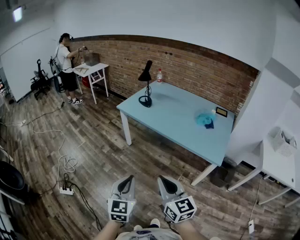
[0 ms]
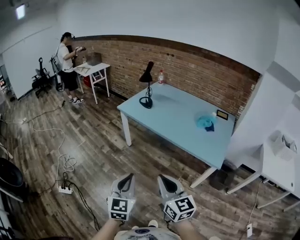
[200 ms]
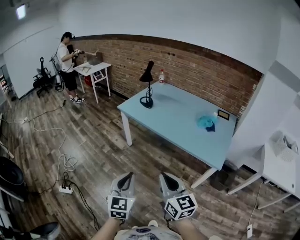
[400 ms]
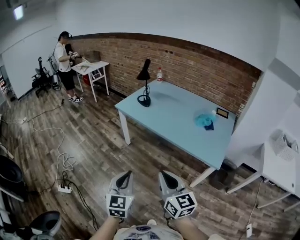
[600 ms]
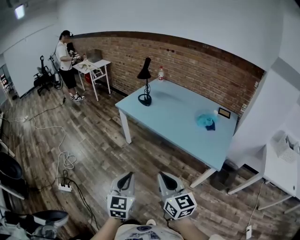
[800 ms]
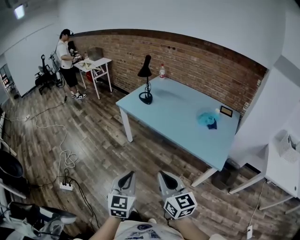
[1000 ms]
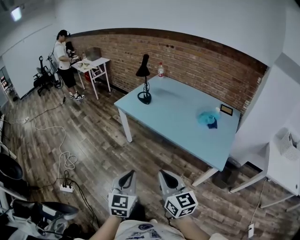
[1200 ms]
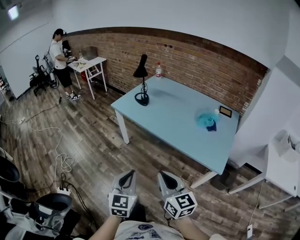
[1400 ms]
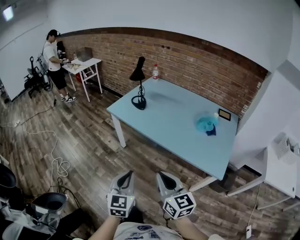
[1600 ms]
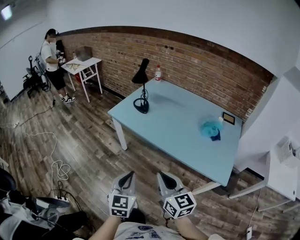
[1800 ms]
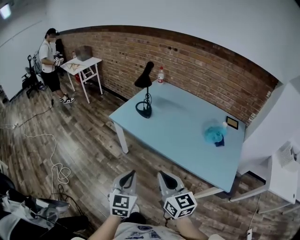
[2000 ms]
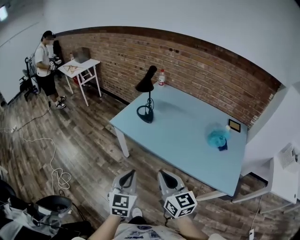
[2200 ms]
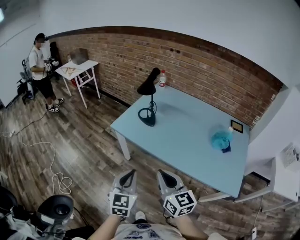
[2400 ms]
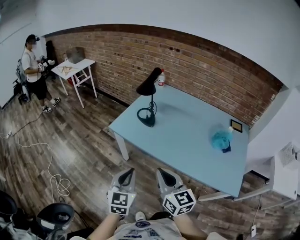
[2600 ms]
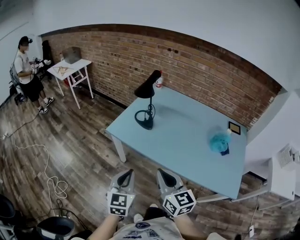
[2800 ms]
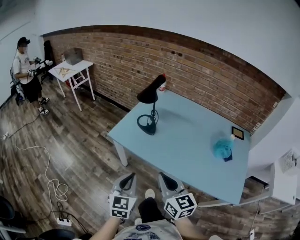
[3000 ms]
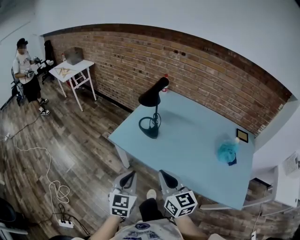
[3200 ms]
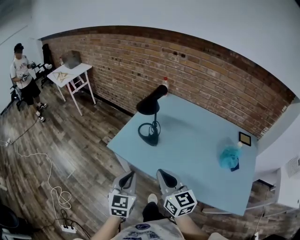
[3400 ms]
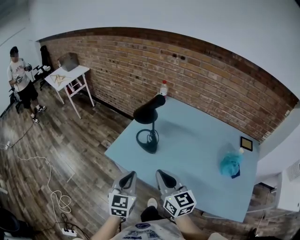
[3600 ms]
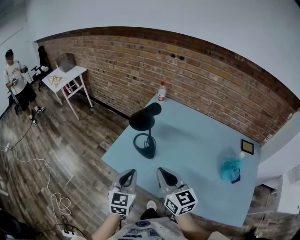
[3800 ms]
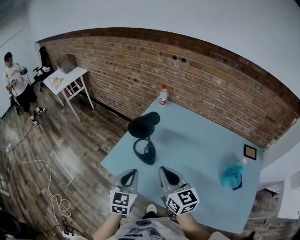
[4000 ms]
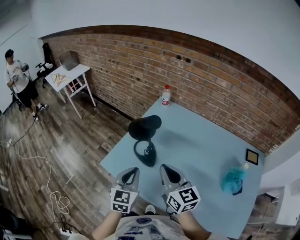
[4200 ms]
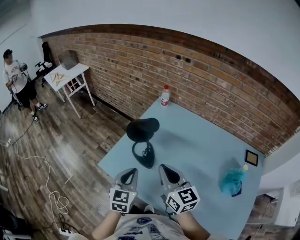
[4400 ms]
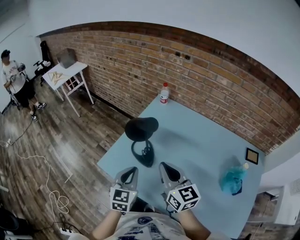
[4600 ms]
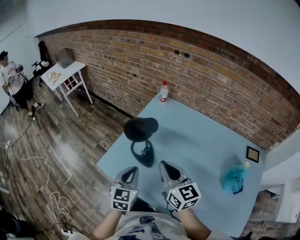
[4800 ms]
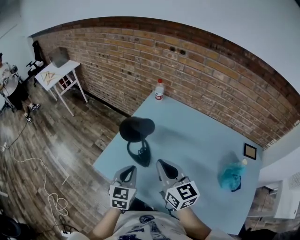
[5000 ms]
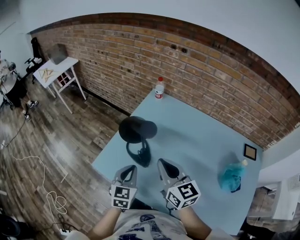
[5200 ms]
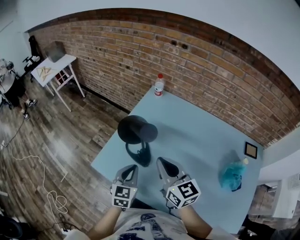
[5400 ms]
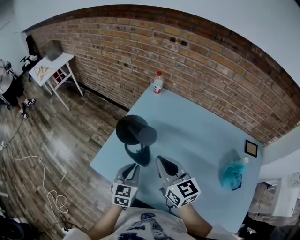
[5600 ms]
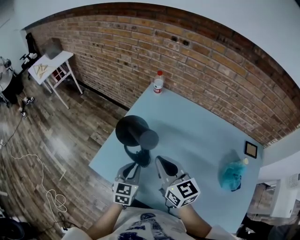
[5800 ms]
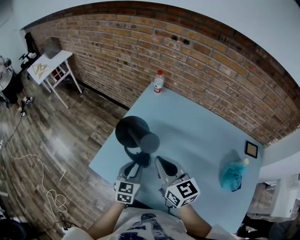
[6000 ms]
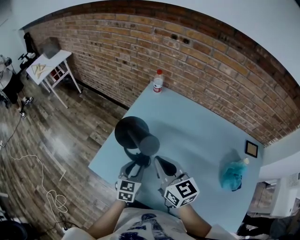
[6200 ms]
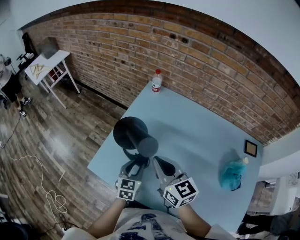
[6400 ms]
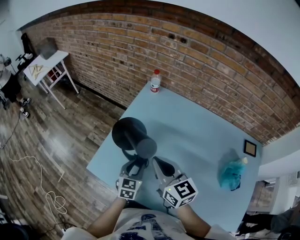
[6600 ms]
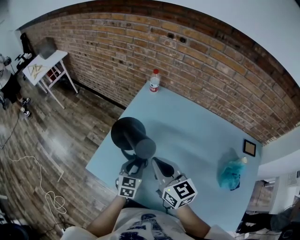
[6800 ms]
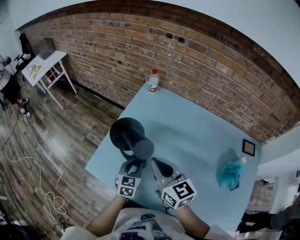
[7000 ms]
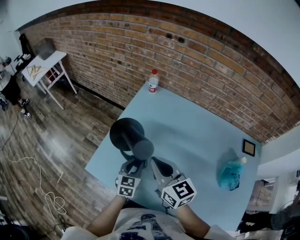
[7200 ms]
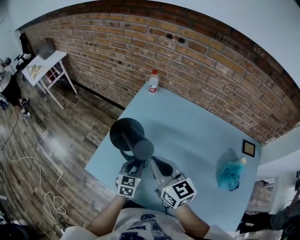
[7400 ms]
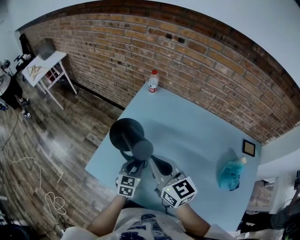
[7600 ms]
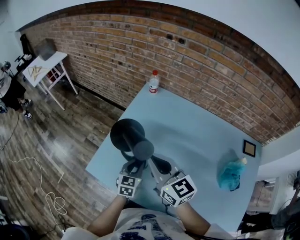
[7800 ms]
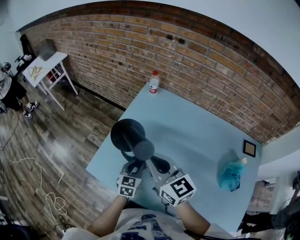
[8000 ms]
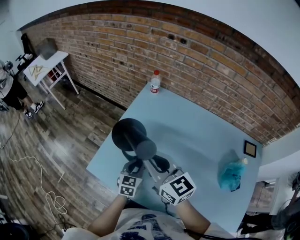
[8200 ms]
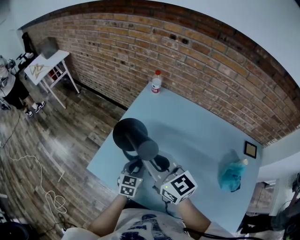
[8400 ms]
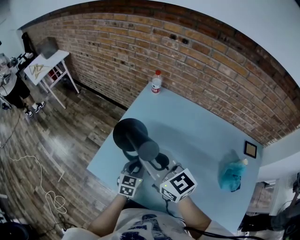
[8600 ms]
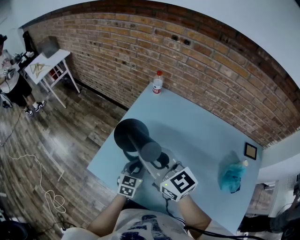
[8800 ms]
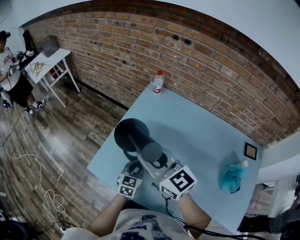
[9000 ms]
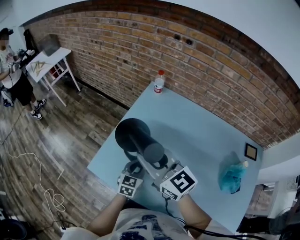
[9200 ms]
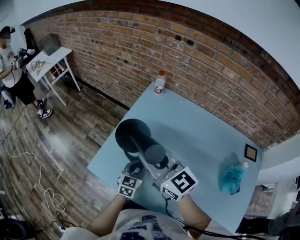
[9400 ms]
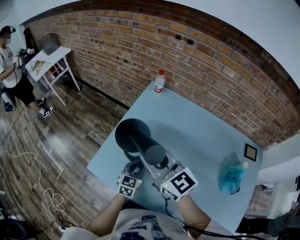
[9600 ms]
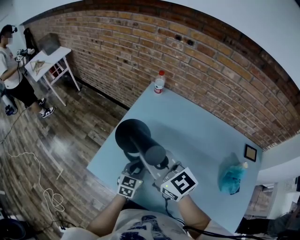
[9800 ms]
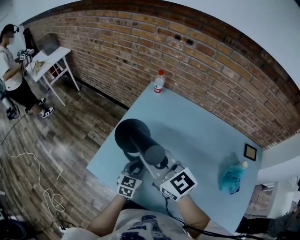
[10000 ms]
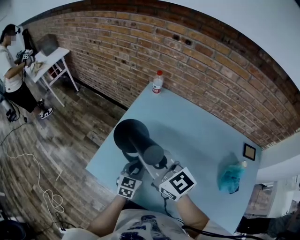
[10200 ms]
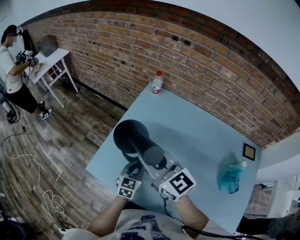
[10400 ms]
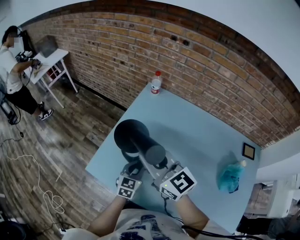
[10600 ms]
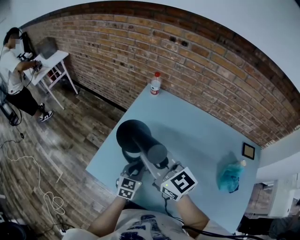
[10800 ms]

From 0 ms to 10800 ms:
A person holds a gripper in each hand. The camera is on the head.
From 0 ms to 1600 ms: The grippers both shift forward by some 20 cm.
From 1600 ms to 3000 ms: The grippers both shift forward by roughly 30 cm.
From 3000 ms to 4600 ms: The grippers both shift forward by approximately 35 cm.
From 4600 ms to 6200 ms: The right gripper shifts roughly 10 cm forward. Meanwhile the left gripper travels downward and forward by roughly 15 cm, and opens up.
From 6200 ms to 7800 ms: The grippers make only small movements.
From 7800 ms to 9200 ms: The right gripper shifts by about 5 cm, and opens its fingers.
From 9200 ms to 10800 ms: There are only small adjustments of the grippers.

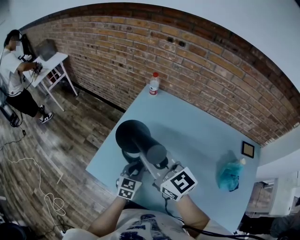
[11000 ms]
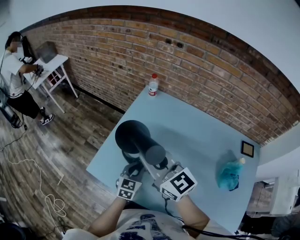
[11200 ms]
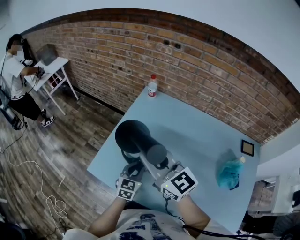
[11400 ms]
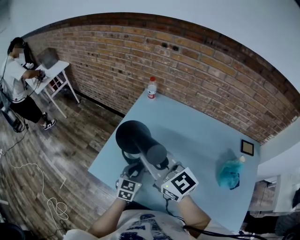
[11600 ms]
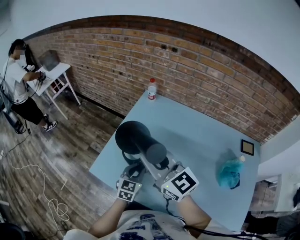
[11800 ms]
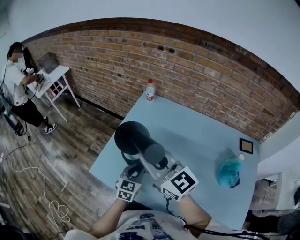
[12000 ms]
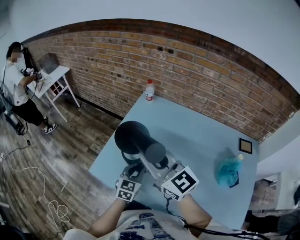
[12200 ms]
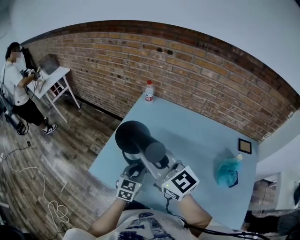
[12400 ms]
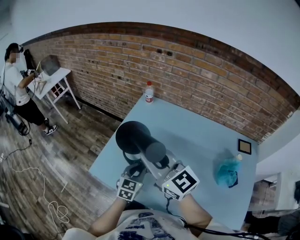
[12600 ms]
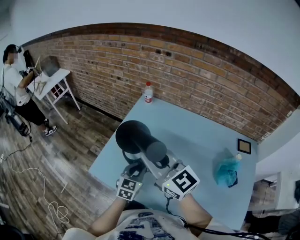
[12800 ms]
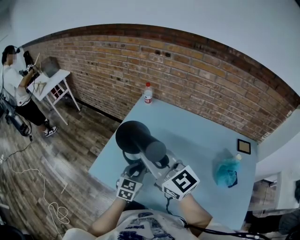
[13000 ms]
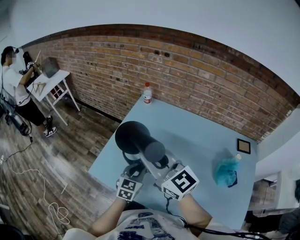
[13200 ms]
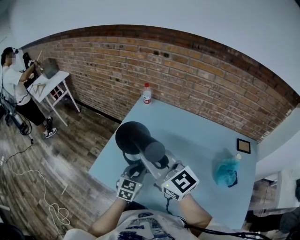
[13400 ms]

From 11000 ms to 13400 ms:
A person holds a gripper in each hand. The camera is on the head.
From 11000 ms to 12200 ms: The left gripper ends up about 5 cm from where it was; the right gripper heads backward, covering roughly 5 cm.
From 12200 ms to 13400 ms: The grippers move only a little.

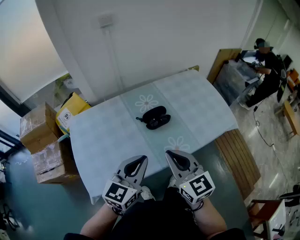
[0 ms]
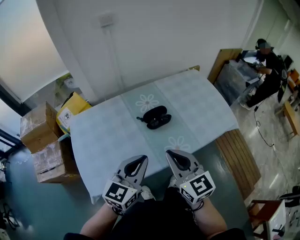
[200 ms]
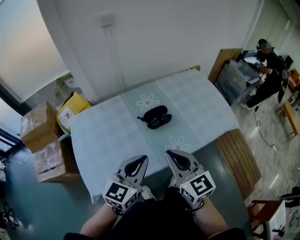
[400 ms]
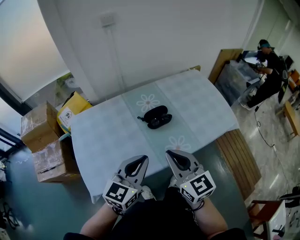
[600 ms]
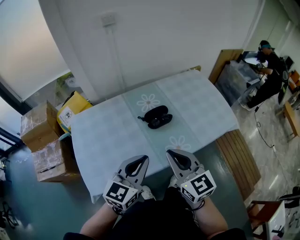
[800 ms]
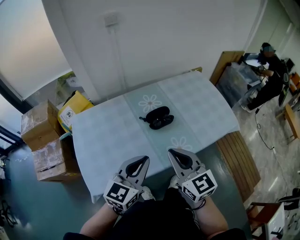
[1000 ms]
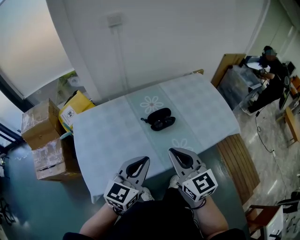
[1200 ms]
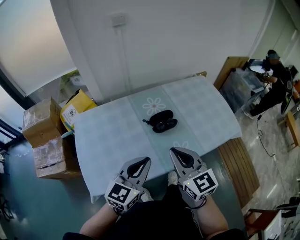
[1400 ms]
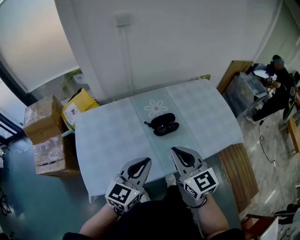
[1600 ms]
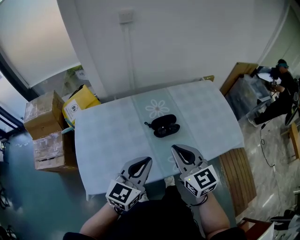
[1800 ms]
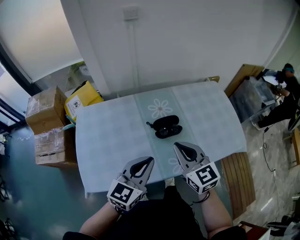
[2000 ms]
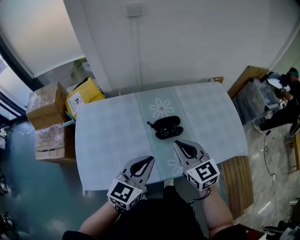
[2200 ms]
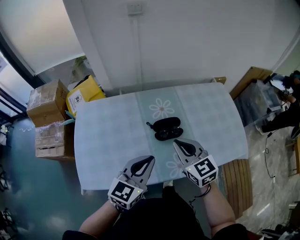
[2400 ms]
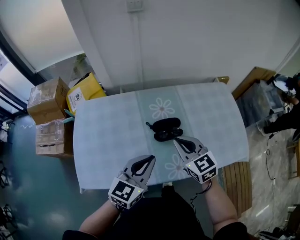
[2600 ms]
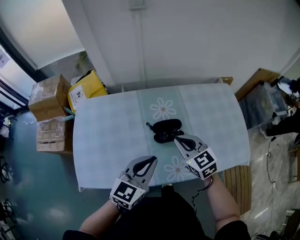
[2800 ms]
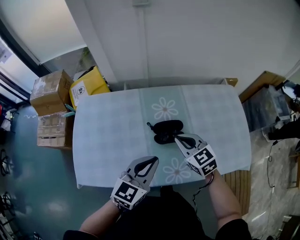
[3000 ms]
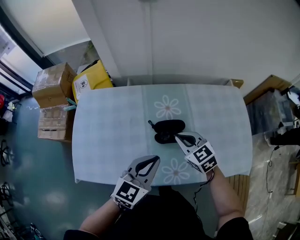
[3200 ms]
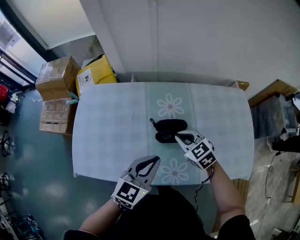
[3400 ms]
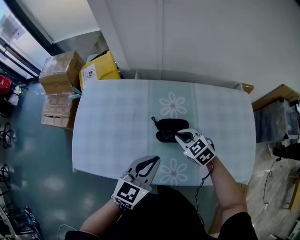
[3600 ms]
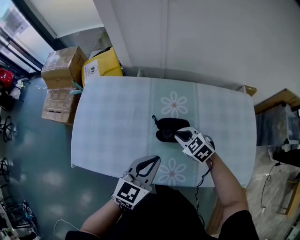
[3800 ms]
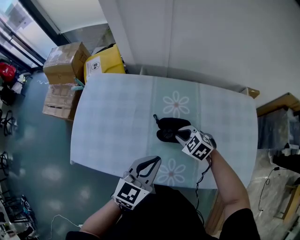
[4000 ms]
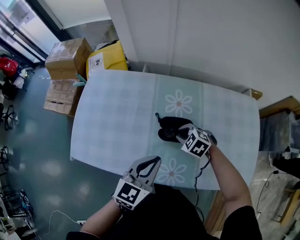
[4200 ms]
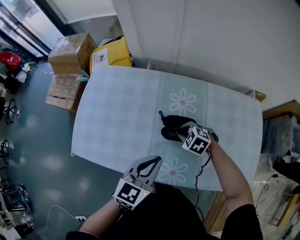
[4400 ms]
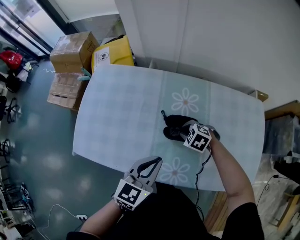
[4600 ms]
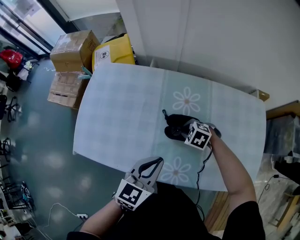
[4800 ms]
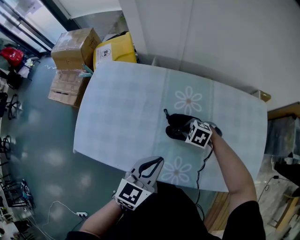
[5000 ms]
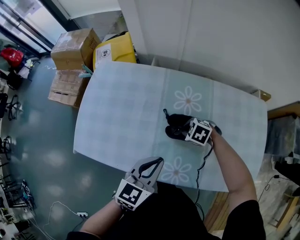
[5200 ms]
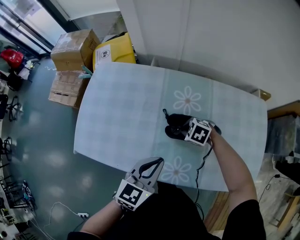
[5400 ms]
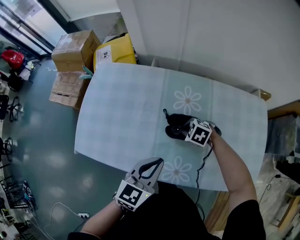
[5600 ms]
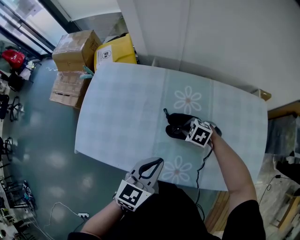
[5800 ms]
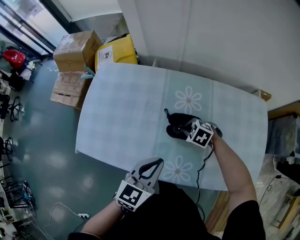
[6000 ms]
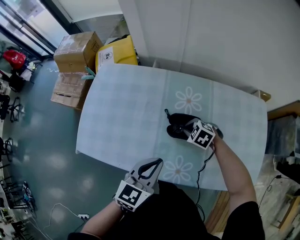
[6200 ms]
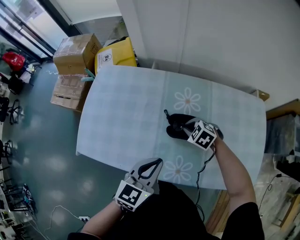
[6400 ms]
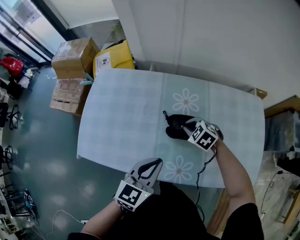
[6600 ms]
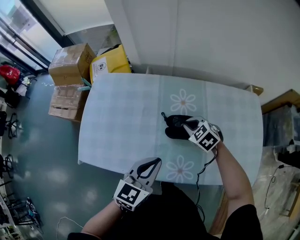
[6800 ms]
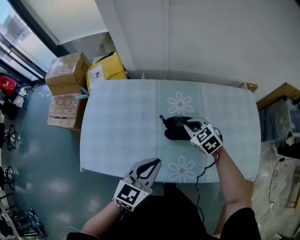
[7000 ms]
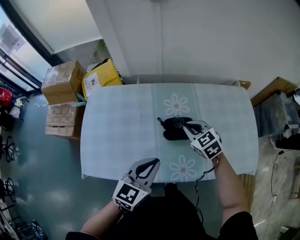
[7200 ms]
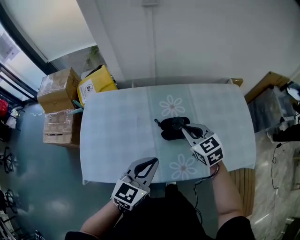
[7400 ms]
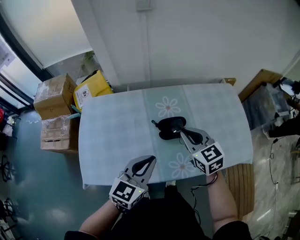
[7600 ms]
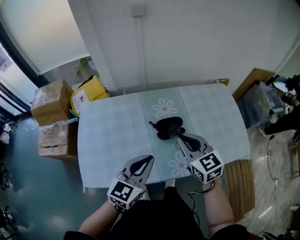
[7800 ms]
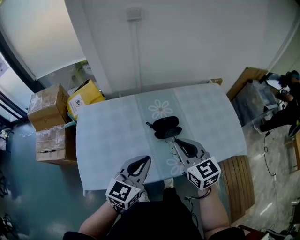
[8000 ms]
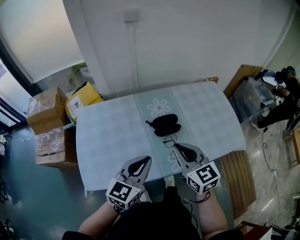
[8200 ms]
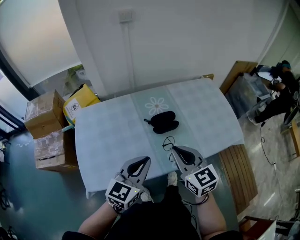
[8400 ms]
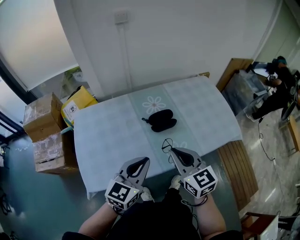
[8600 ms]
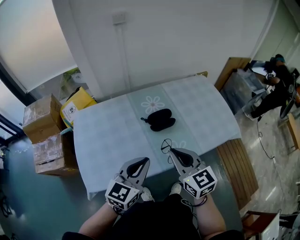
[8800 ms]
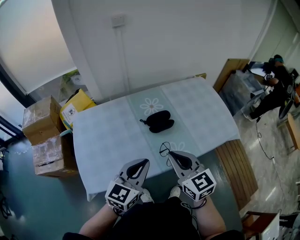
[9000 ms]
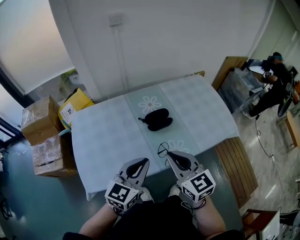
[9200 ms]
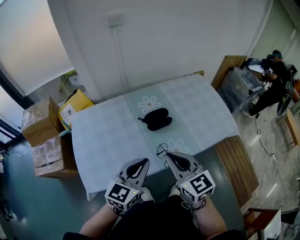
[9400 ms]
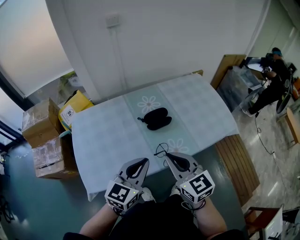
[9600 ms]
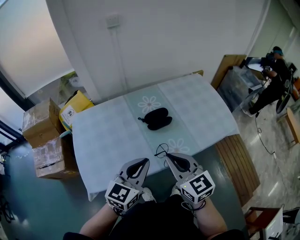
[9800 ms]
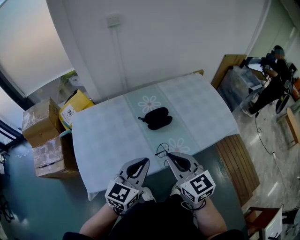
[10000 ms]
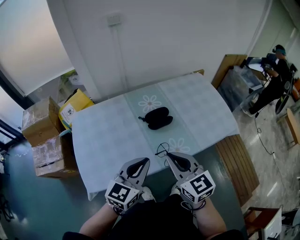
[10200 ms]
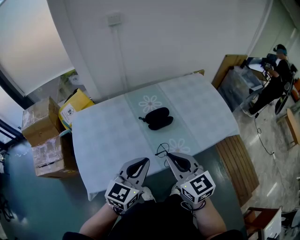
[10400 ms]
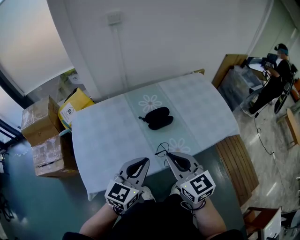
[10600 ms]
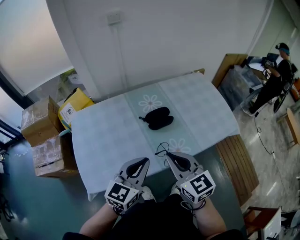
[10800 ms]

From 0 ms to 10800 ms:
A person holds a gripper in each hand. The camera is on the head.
From 0 ms to 1600 ms: The grippers move only a little.
From 1600 ms to 3000 ms: The left gripper travels forward and to the right by about 10 cm. The right gripper travels forward and downward by approximately 20 cm, and swivels some 30 degrees.
From 3000 ms to 4600 ms: The right gripper heads downward, covering approximately 15 cm, and tilts its fingers roughly 30 degrees downward; the left gripper is displaced downward by roughly 5 cm.
From 4600 ms to 6200 ms: The grippers make only small movements.
From 6200 ms to 7800 ms: The left gripper goes about 10 cm upward, and changes its angle by some 20 degrees, while the right gripper moves upward, approximately 25 cm, and points its fingers about 50 degrees further upward.
From 7800 ms to 9200 ms: The right gripper travels backward by approximately 15 cm. Meanwhile the left gripper is displaced backward by some 10 cm.
From 9200 ms to 10800 ms: Both grippers stay put.
